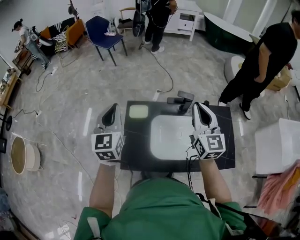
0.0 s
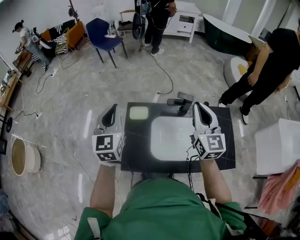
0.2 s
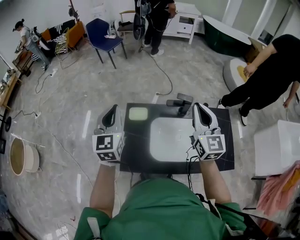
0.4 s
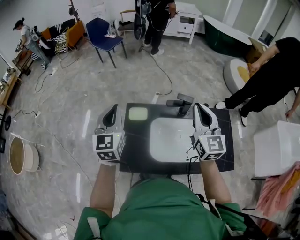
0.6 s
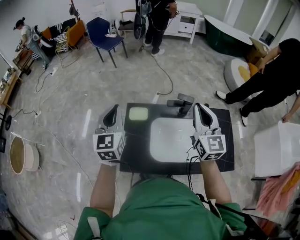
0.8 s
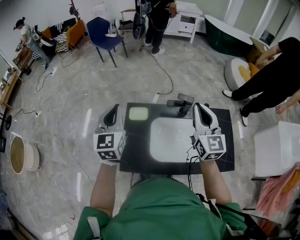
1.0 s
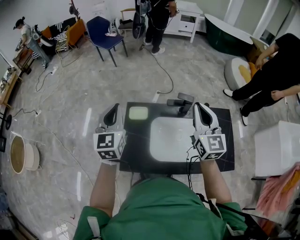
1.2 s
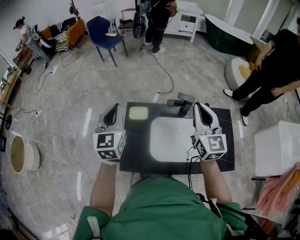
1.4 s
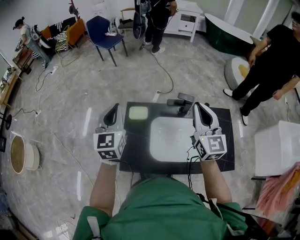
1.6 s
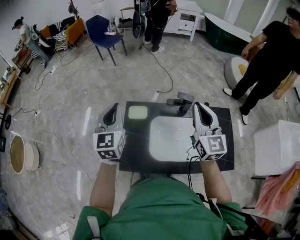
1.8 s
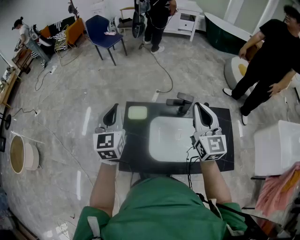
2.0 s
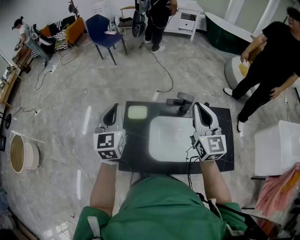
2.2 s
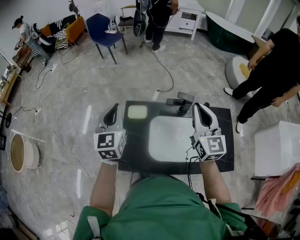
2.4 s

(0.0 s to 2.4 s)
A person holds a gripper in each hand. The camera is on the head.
0.0 s - 1.2 s: Both grippers stay about where they are.
1.2 s - 2.4 s: There are only small adjustments of the grippers.

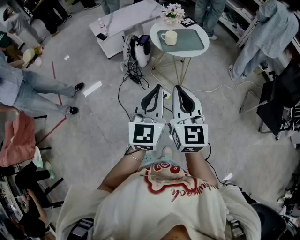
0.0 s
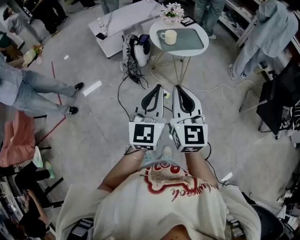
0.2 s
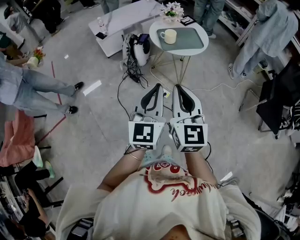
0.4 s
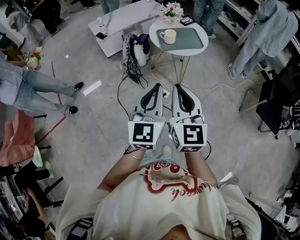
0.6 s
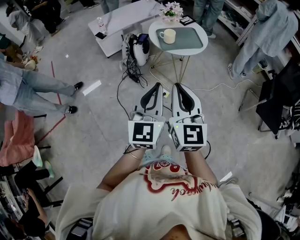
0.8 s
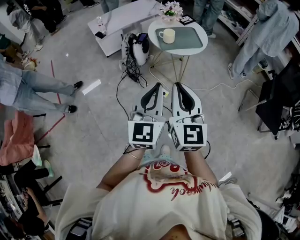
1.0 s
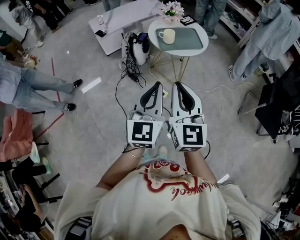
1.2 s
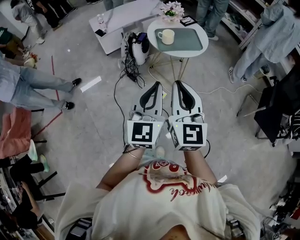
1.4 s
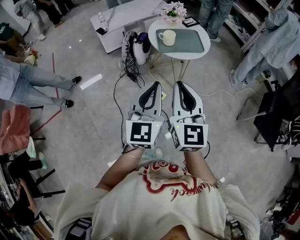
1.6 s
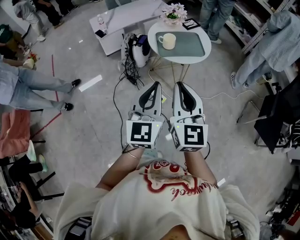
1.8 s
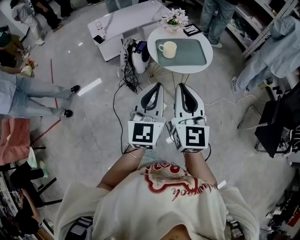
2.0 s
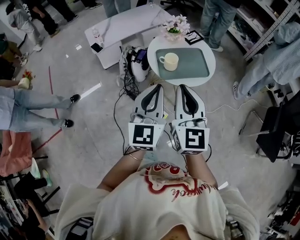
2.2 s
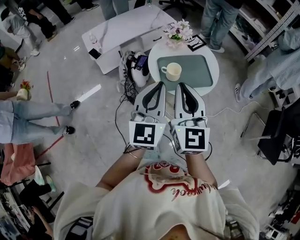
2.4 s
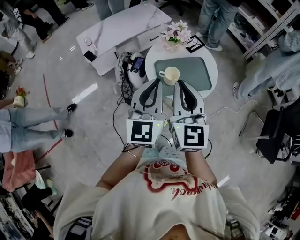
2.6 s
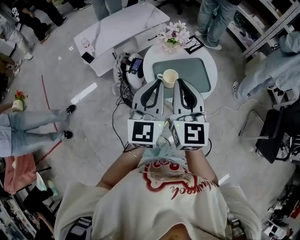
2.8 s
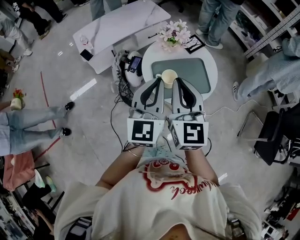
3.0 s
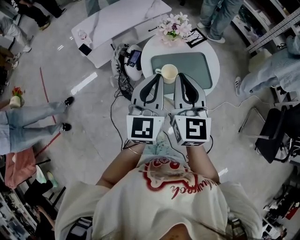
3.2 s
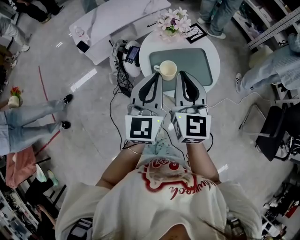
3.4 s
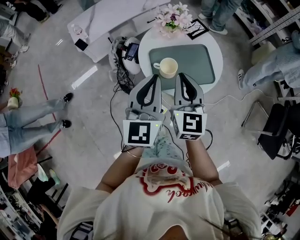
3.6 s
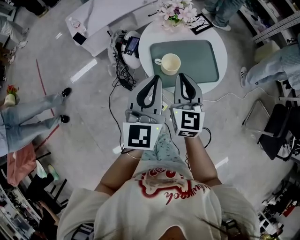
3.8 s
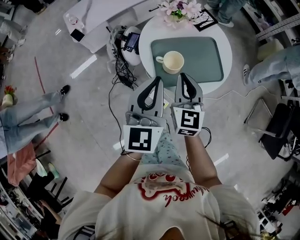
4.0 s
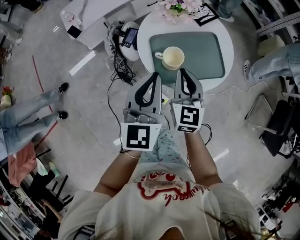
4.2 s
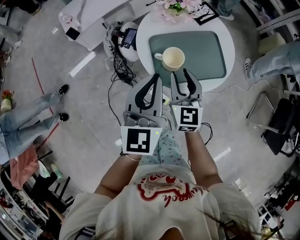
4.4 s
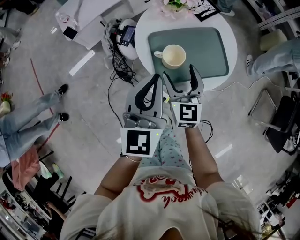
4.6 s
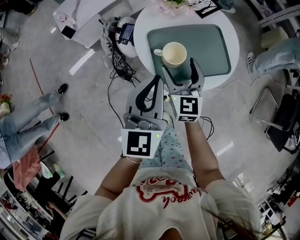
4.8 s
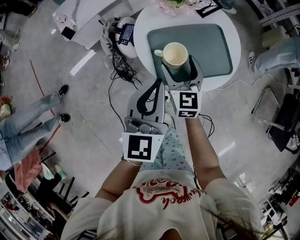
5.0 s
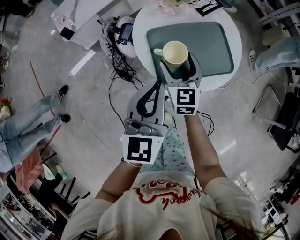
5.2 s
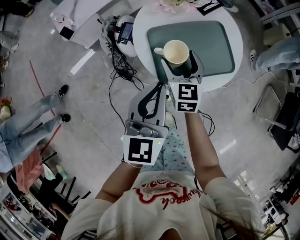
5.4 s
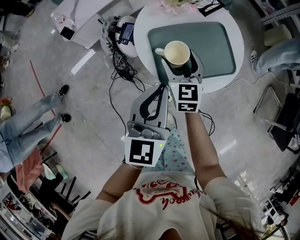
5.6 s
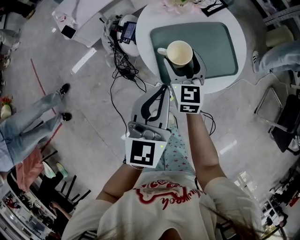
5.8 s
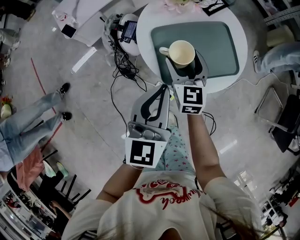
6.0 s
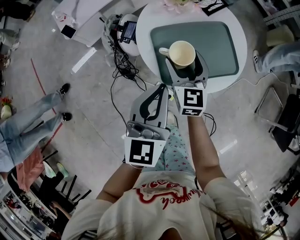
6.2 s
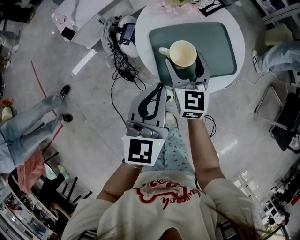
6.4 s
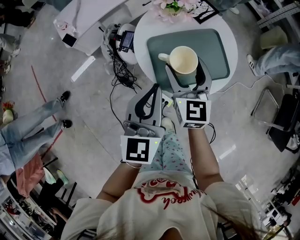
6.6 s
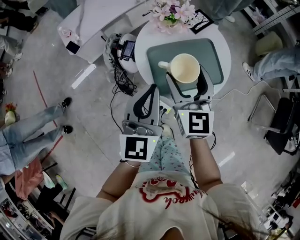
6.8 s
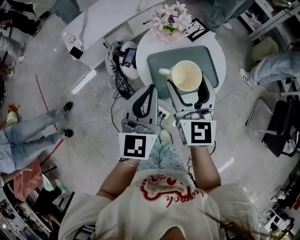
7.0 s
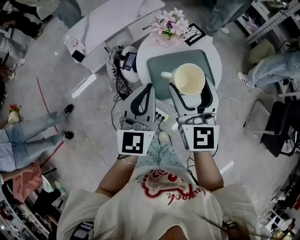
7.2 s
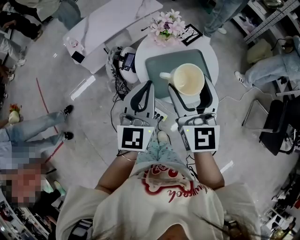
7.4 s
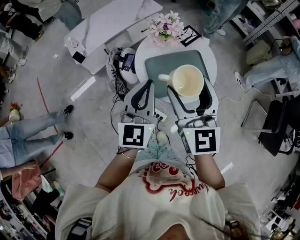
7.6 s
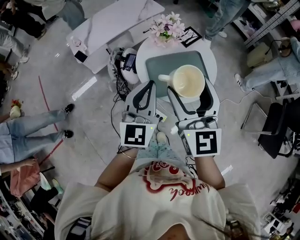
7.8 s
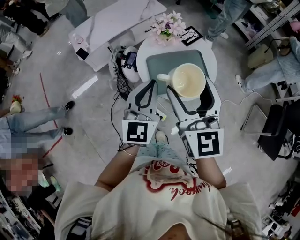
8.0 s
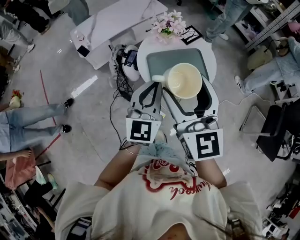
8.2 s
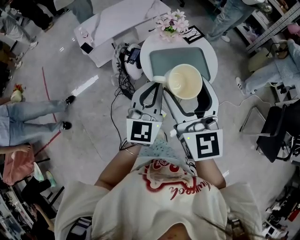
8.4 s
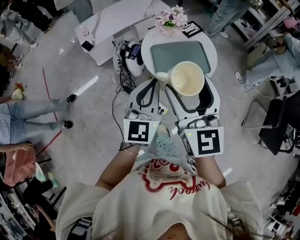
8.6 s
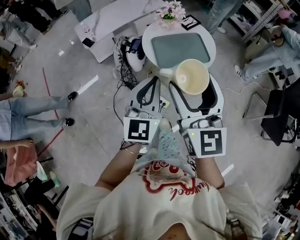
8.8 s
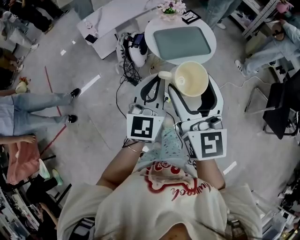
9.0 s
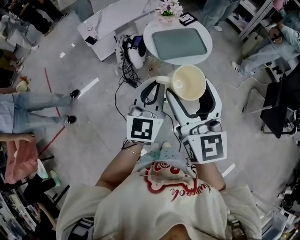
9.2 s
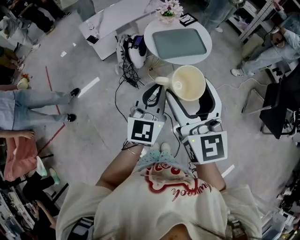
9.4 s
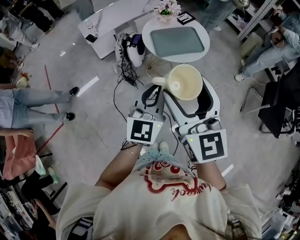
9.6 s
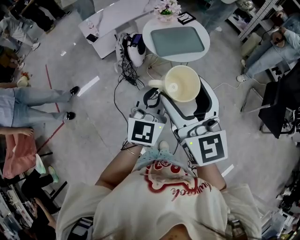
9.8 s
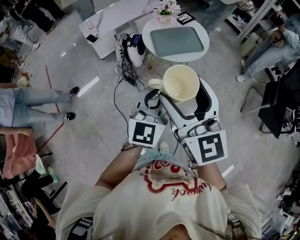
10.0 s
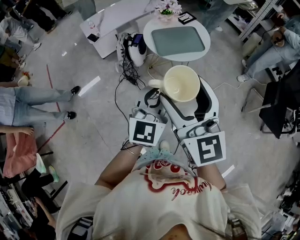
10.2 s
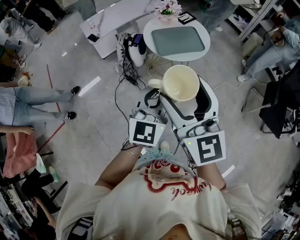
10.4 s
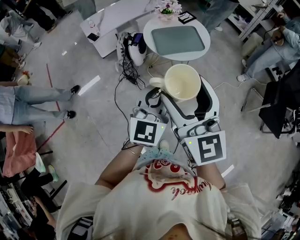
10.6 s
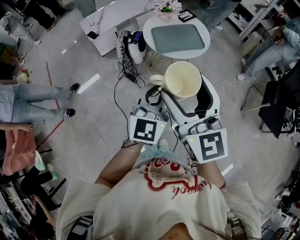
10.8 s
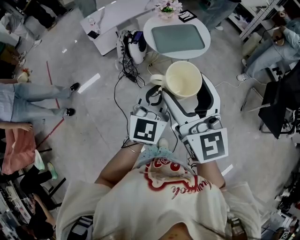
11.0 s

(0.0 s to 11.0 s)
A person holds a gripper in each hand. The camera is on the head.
0.0 s - 1.6 s: The left gripper ends up roughly 5 cm from where it was. The right gripper goes about 5 cm forward and to the right.
1.6 s - 3.2 s: The two grippers go approximately 35 cm forward.
3.2 s - 4.8 s: The left gripper heads downward, covering roughly 10 cm. The right gripper goes about 25 cm downward, and opens its fingers.
4.8 s - 6.2 s: The grippers make only small movements.
6.2 s - 7.8 s: The right gripper moves upward and backward, about 30 cm. Meanwhile the left gripper goes about 15 cm upward.
7.8 s - 9.4 s: Both grippers travel together backward, some 30 cm.
9.4 s - 11.0 s: The grippers make only small movements.

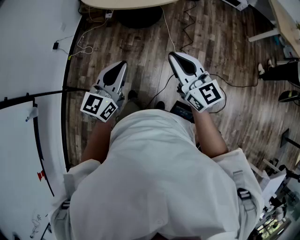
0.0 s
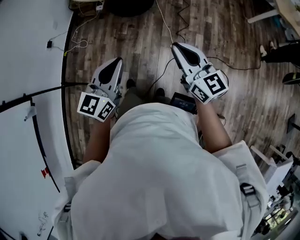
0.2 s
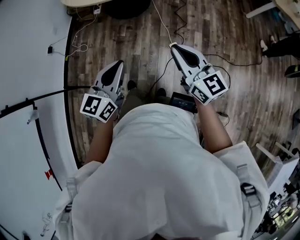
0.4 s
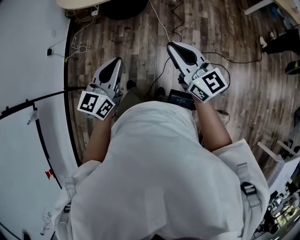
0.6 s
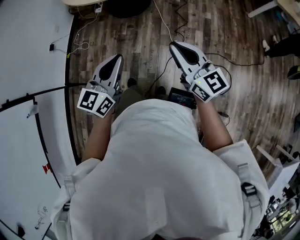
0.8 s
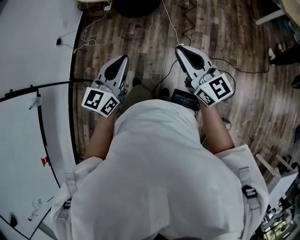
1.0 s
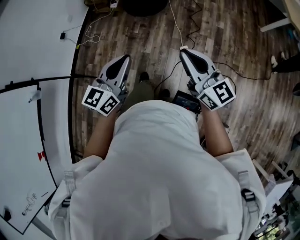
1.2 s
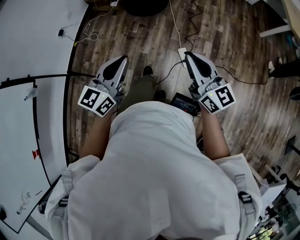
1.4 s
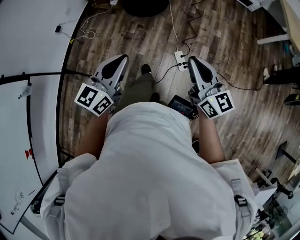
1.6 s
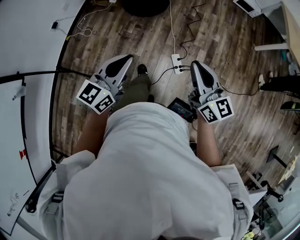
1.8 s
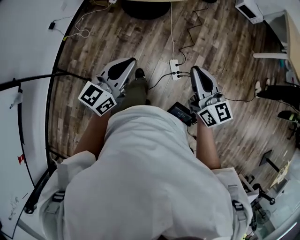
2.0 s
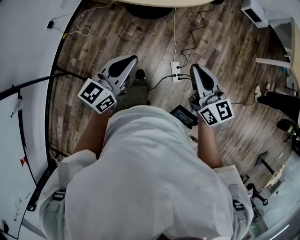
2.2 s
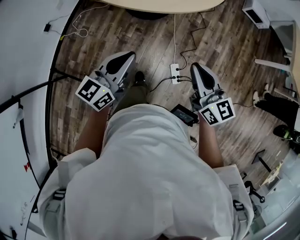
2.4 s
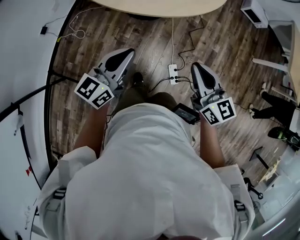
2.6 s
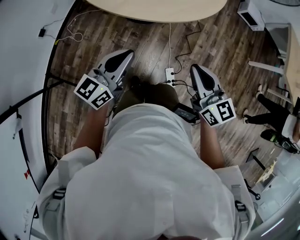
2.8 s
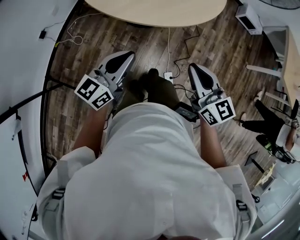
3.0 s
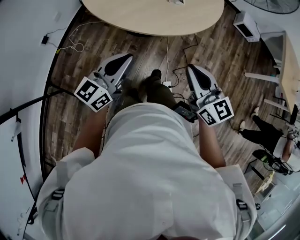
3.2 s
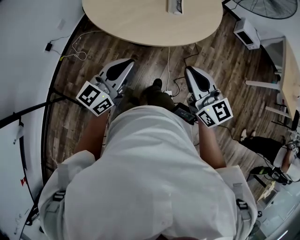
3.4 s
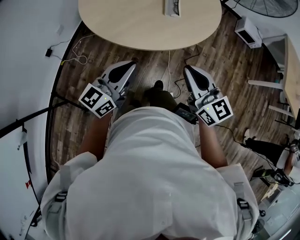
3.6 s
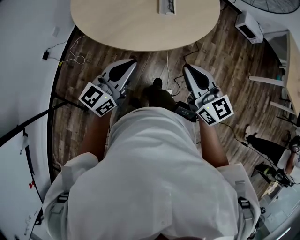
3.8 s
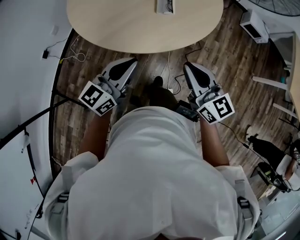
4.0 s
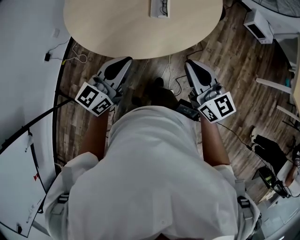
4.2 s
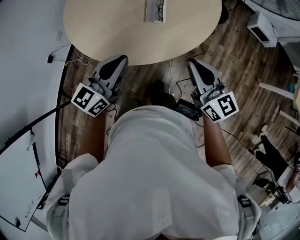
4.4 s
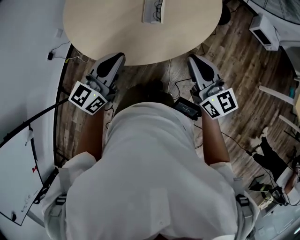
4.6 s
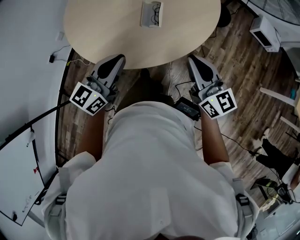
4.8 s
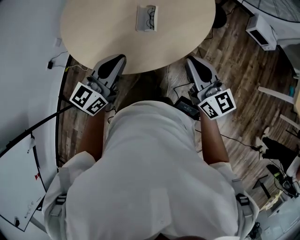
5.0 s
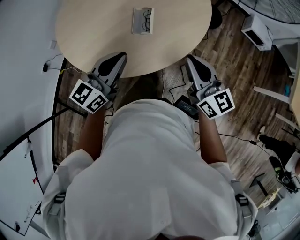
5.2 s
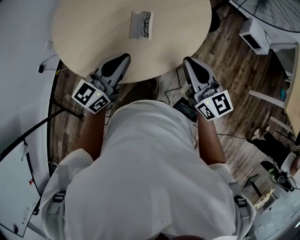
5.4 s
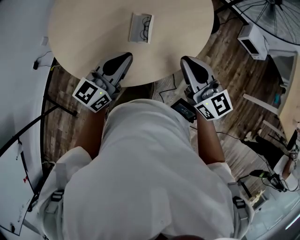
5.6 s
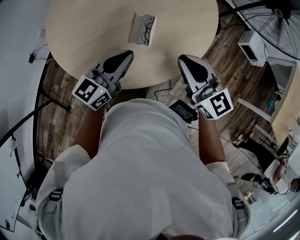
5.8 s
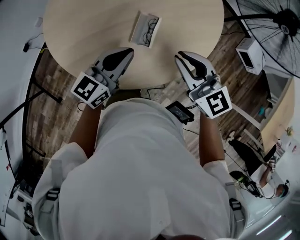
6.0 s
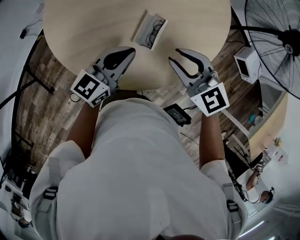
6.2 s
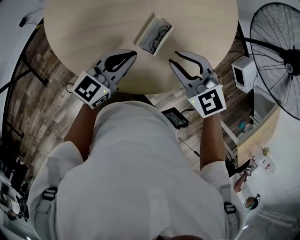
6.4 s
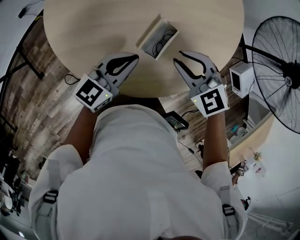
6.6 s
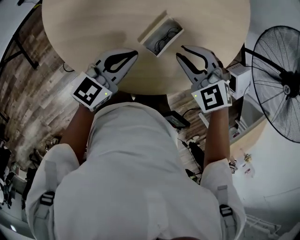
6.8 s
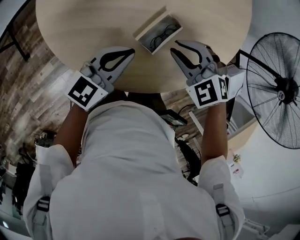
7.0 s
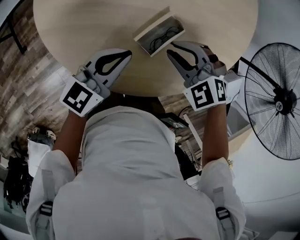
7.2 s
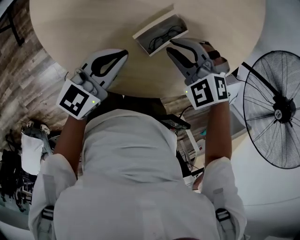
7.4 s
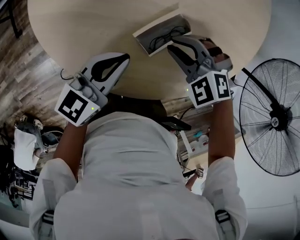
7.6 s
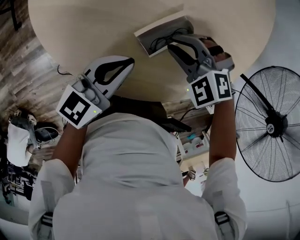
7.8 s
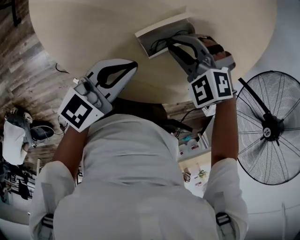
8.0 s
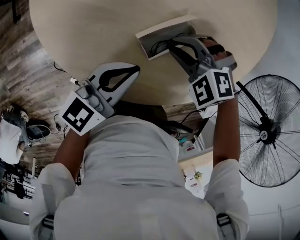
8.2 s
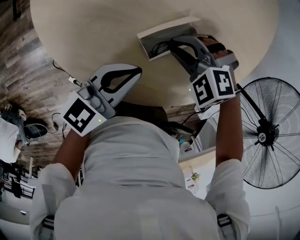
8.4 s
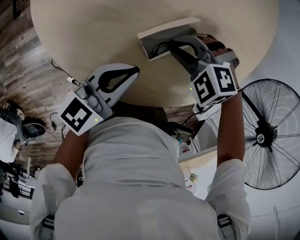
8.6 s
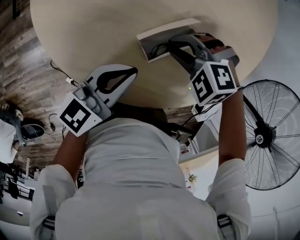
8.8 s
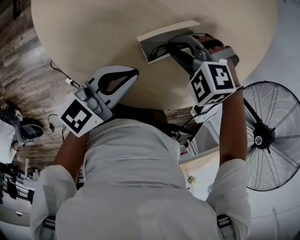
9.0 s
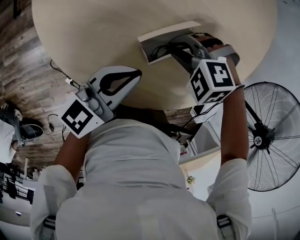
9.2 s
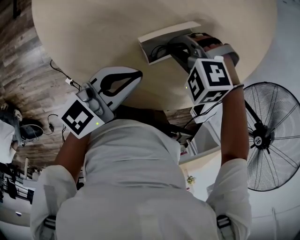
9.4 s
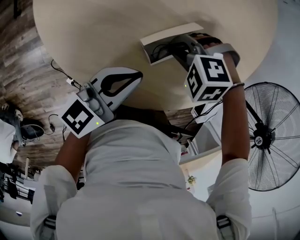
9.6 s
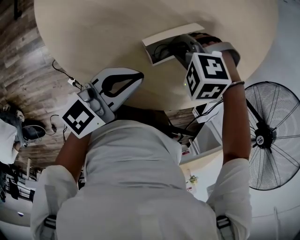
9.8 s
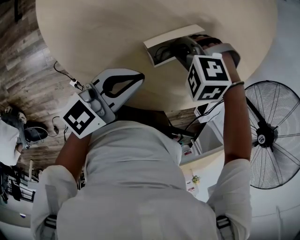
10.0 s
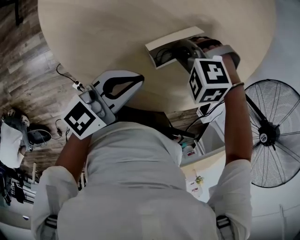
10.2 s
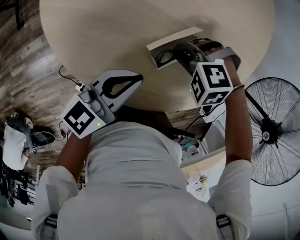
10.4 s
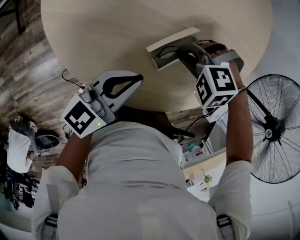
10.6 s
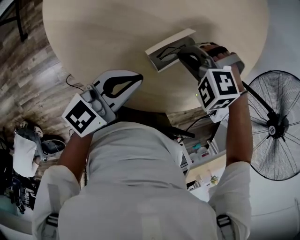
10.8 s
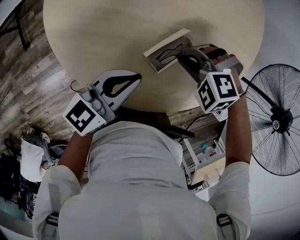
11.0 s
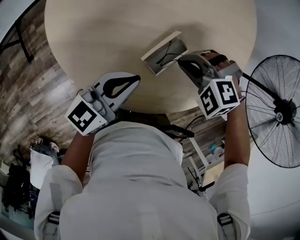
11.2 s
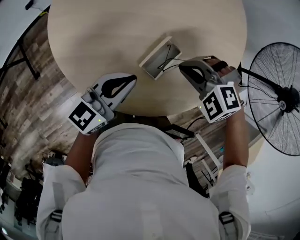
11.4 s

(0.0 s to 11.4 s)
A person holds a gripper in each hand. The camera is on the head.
0.0 s - 1.4 s: The left gripper goes some 10 cm to the right. The right gripper shifts approximately 15 cm to the right.
1.4 s - 2.8 s: Both grippers travel together forward, some 35 cm.
2.8 s - 4.2 s: Both grippers move forward and to the right, approximately 20 cm.
4.2 s - 5.6 s: The left gripper shifts about 20 cm forward and to the right. The right gripper travels forward by approximately 20 cm.
5.6 s - 7.2 s: The grippers both shift downward by approximately 20 cm. The left gripper swivels some 30 degrees; the right gripper points its fingers about 50 degrees further downward.
7.2 s - 8.6 s: The right gripper shifts roughly 10 cm downward, and rotates roughly 40 degrees. Meanwhile the left gripper changes place by some 5 cm.
8.6 s - 10.0 s: The grippers stay close to where they were, moving slightly.
10.0 s - 11.4 s: The right gripper moves upward, approximately 15 cm, and turns by some 40 degrees. The left gripper travels upward by some 10 cm.
